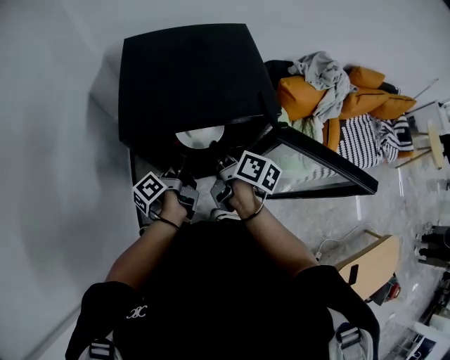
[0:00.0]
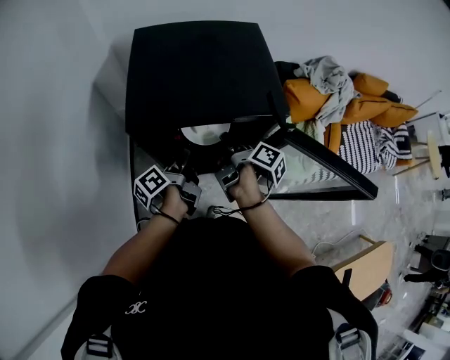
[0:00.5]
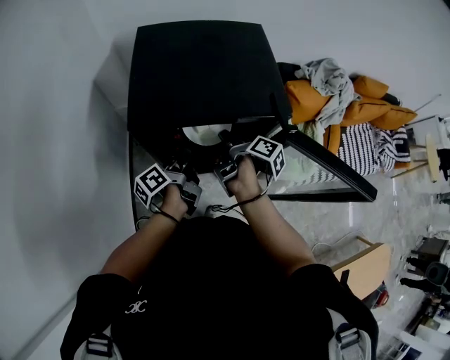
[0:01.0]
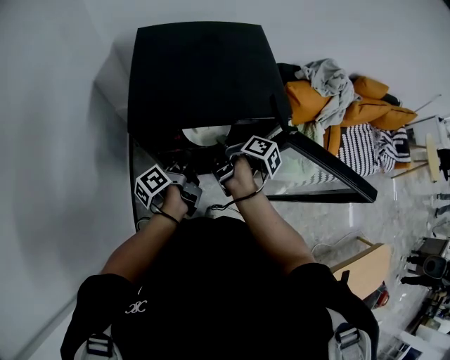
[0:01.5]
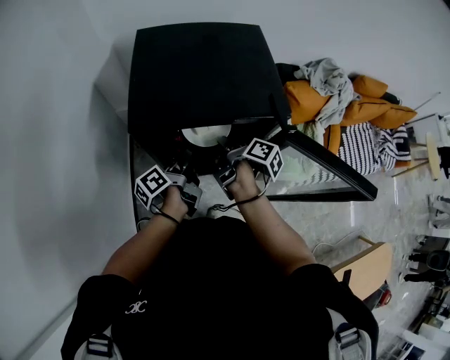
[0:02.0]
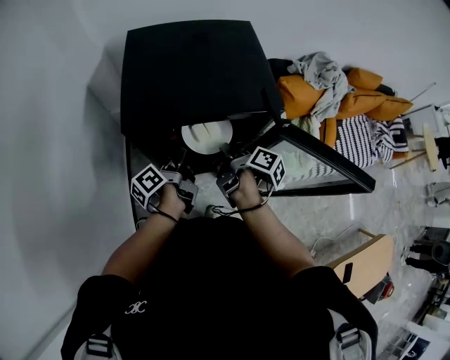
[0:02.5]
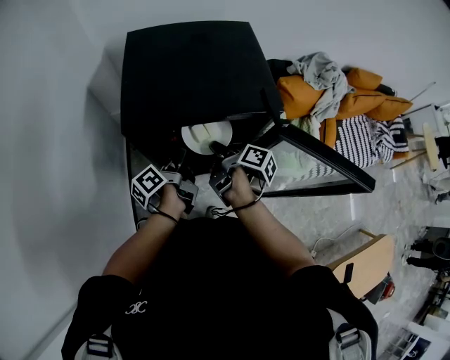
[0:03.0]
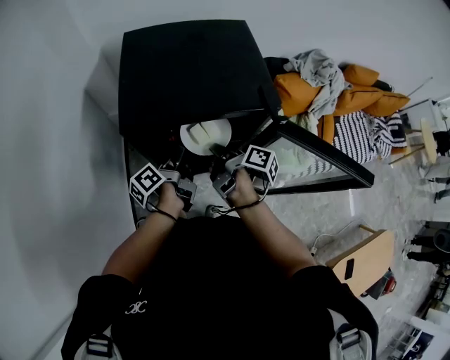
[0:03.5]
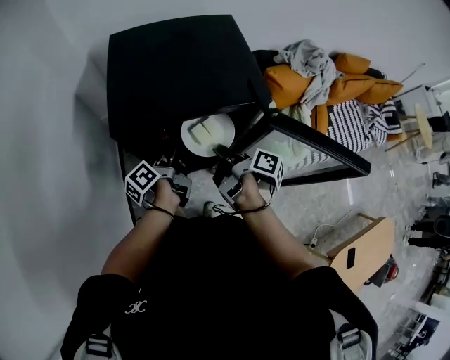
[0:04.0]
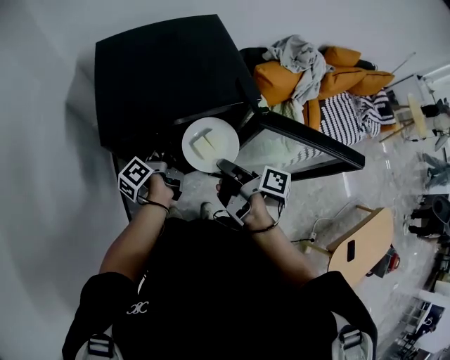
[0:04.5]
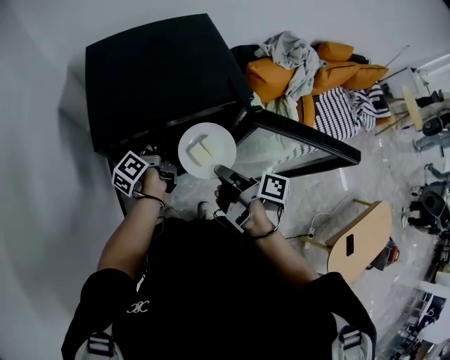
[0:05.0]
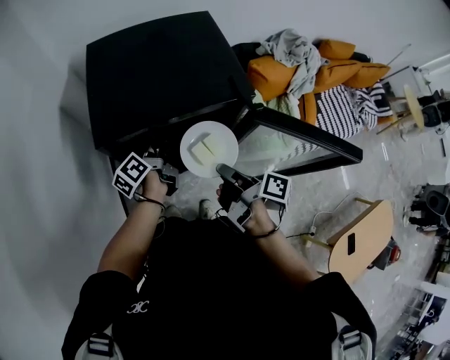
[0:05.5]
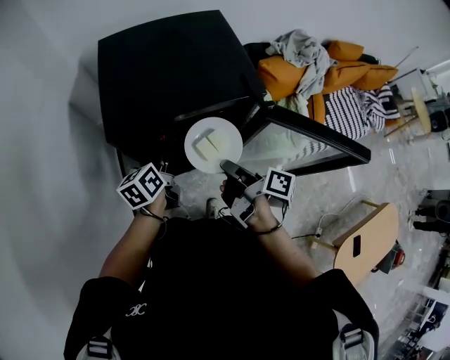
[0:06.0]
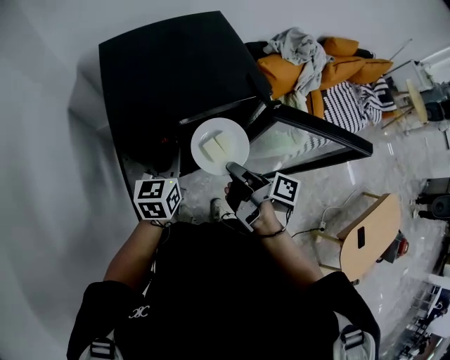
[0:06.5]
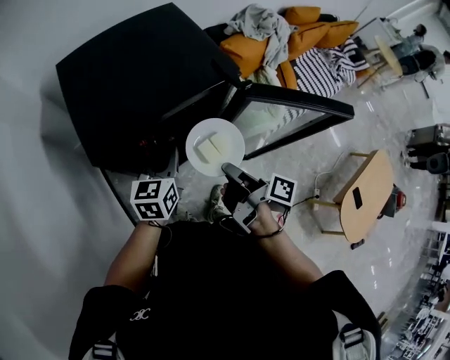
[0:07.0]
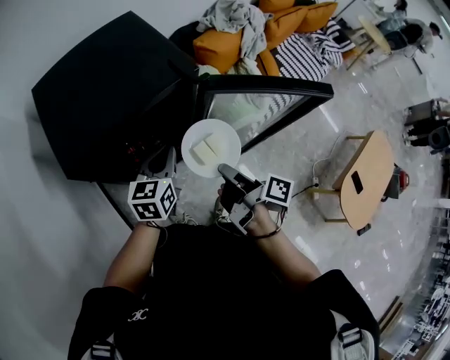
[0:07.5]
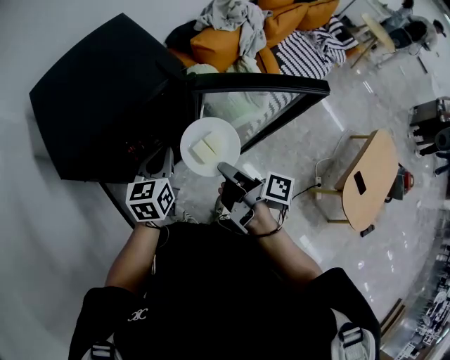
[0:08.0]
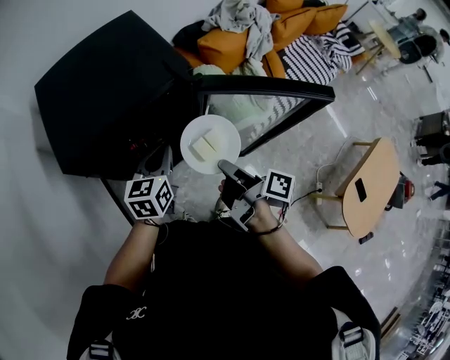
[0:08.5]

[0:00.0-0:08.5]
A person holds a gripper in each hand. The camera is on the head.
0:00.0 to 0:02.0: The right gripper changes its angle by roughly 20 degrees, and closes its fingers.
0:02.0 to 0:04.0: The right gripper shifts approximately 5 cm backward, and opens, then closes once more.
0:04.0 to 0:06.5: The right gripper shifts some 5 cm backward; the left gripper heads upward, covering about 5 cm, and twists approximately 70 degrees clockwise, seen from behind.
0:06.5 to 0:08.5: The right gripper moves to the right and backward, about 15 cm; the left gripper goes roughly 10 cm to the right.

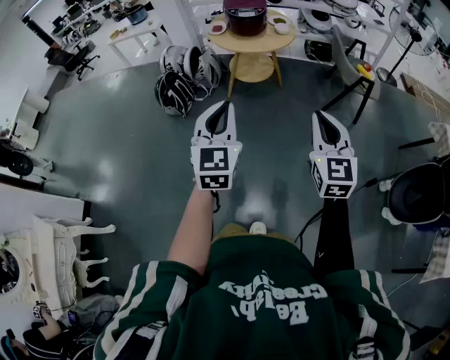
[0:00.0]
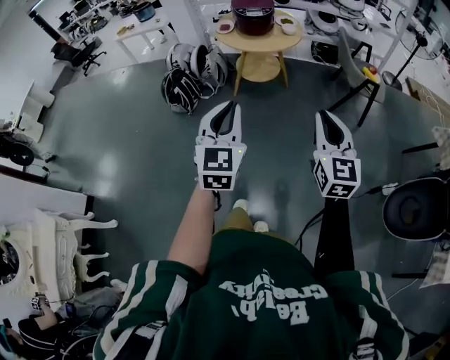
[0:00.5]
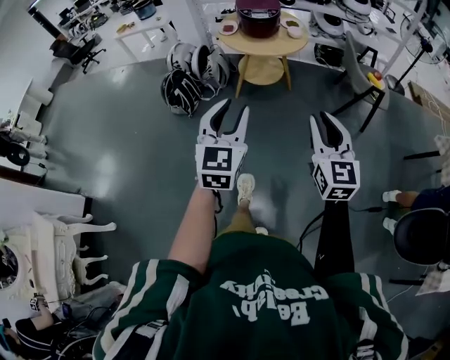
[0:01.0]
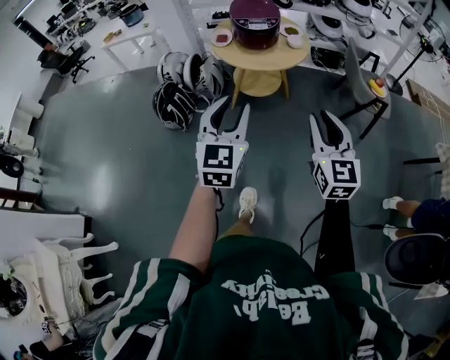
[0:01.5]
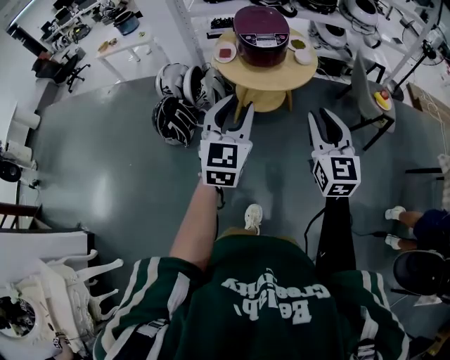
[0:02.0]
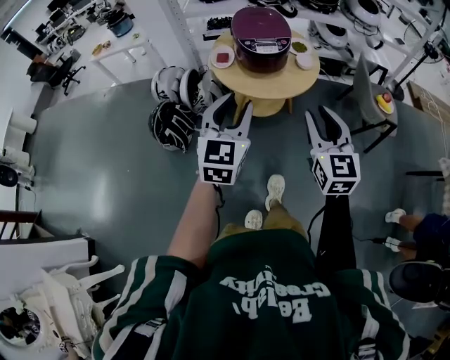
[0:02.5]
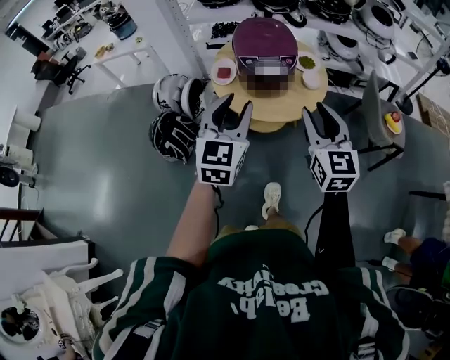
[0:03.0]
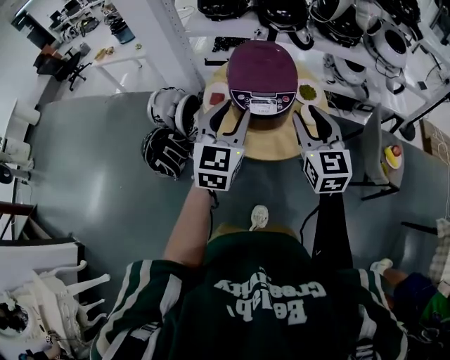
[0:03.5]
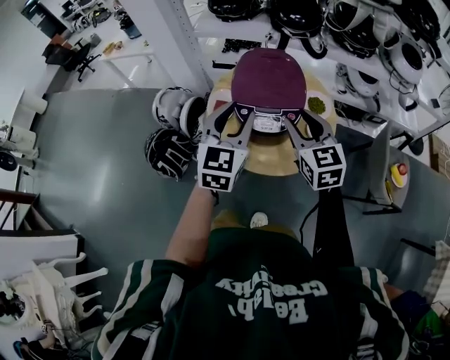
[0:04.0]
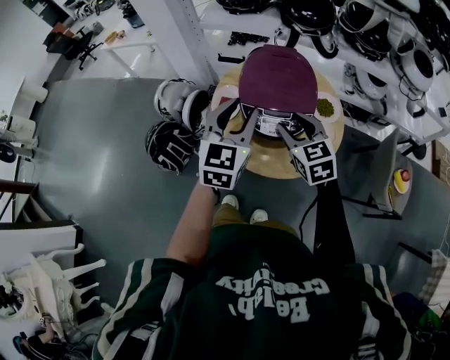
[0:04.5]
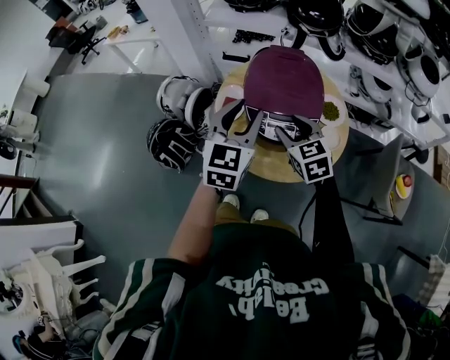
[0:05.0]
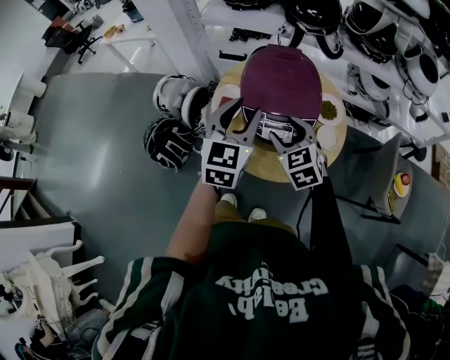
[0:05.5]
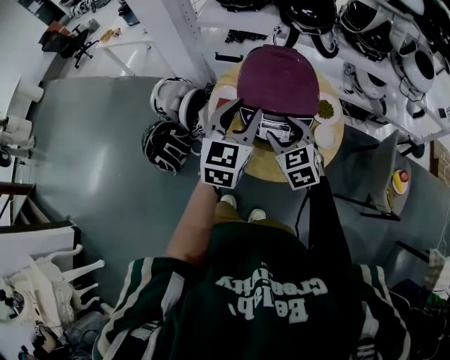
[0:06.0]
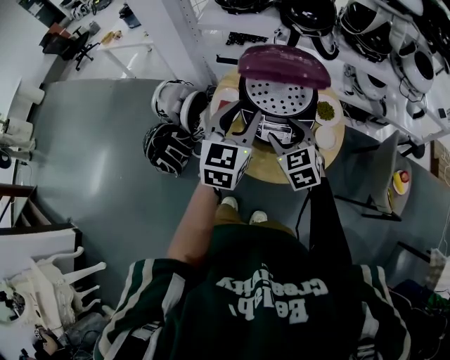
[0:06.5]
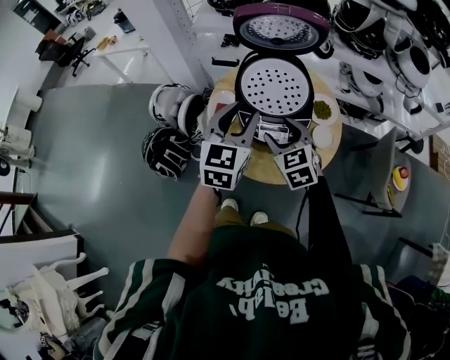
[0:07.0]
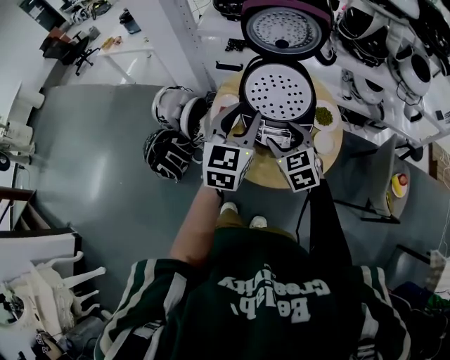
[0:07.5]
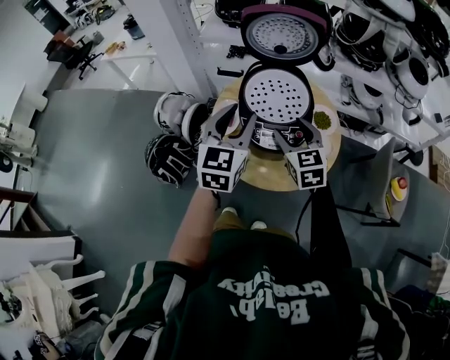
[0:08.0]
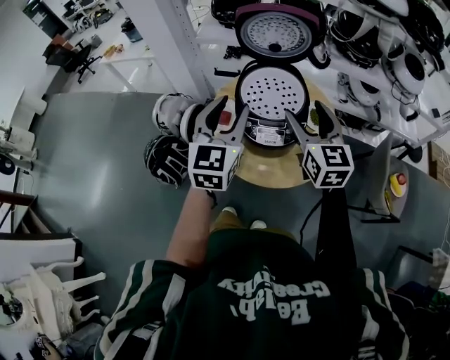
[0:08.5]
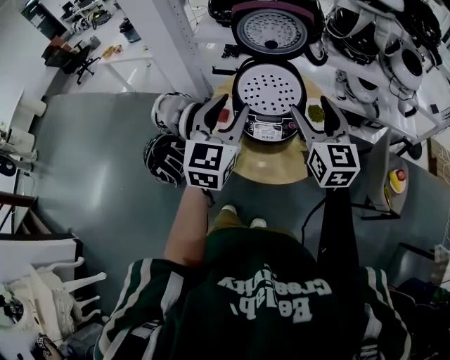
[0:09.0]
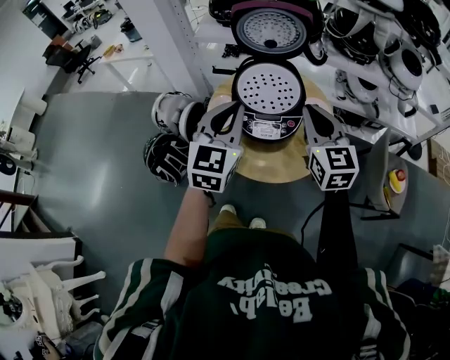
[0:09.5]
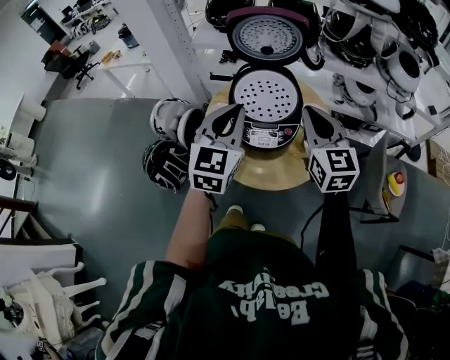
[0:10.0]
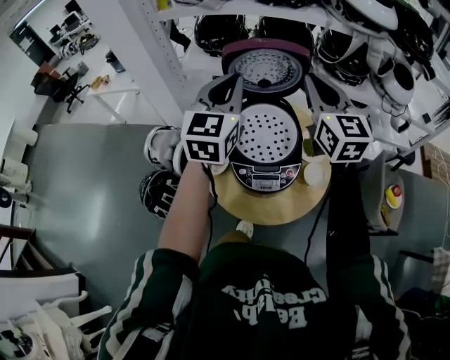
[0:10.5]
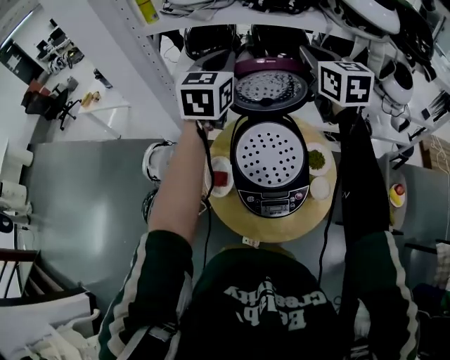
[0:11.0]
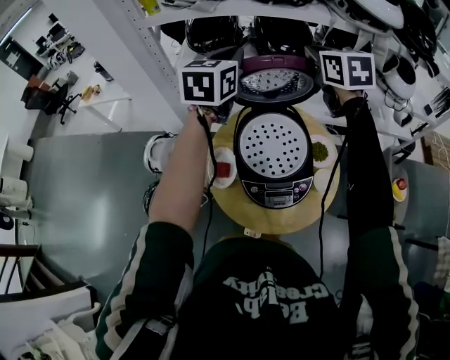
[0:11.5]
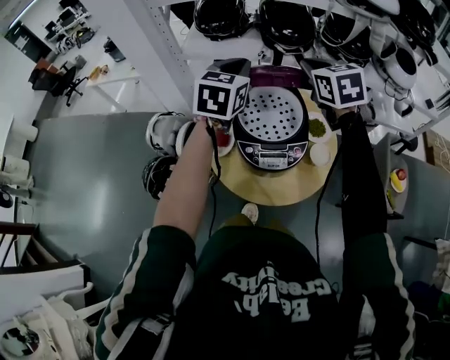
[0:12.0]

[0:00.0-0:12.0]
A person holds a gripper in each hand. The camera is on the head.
0:00.0 to 0:02.0: The two grippers go approximately 35 cm forward. The left gripper opens up.
0:02.0 to 0:04.0: Both grippers are carried forward, about 40 cm. The right gripper turns by some 20 degrees.
0:04.0 to 0:06.0: The right gripper moves downward and to the left, approximately 10 cm. Meanwhile the left gripper moves forward, roughly 5 cm.
0:06.0 to 0:08.0: The right gripper moves approximately 5 cm.
0:08.0 to 0:10.0: The left gripper closes its fingers. The right gripper travels upward and to the right by about 15 cm, and closes its fingers.
0:10.0 to 0:12.0: The grippers both shift forward by some 20 cm. The right gripper turns by roughly 20 degrees.

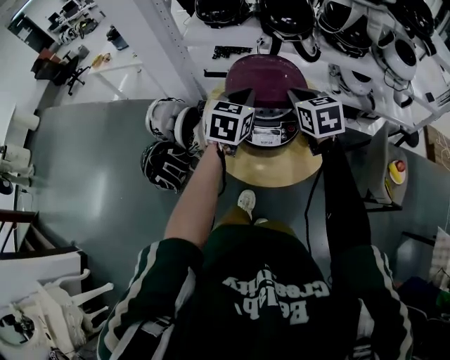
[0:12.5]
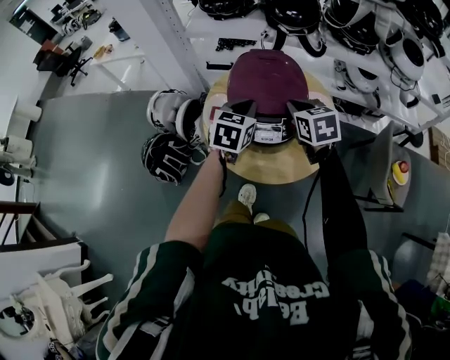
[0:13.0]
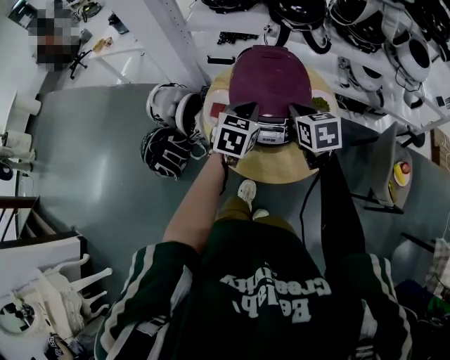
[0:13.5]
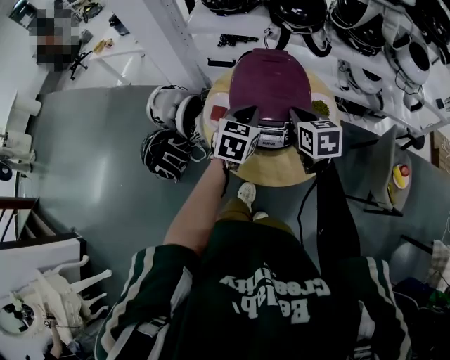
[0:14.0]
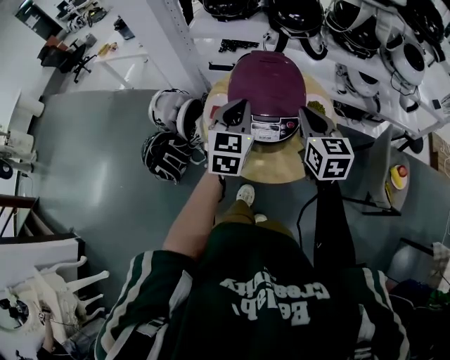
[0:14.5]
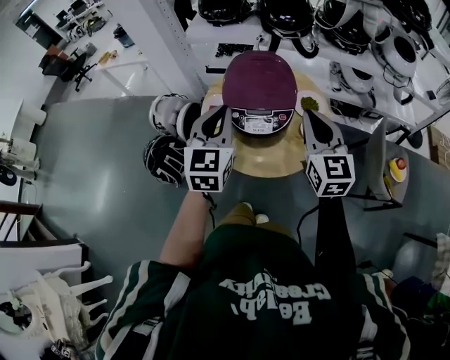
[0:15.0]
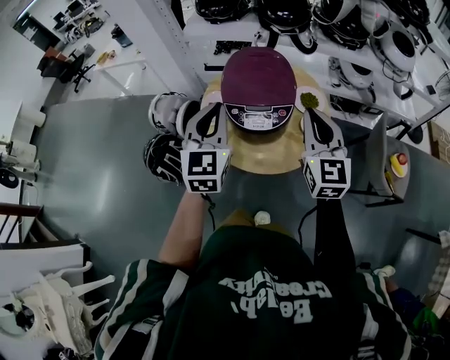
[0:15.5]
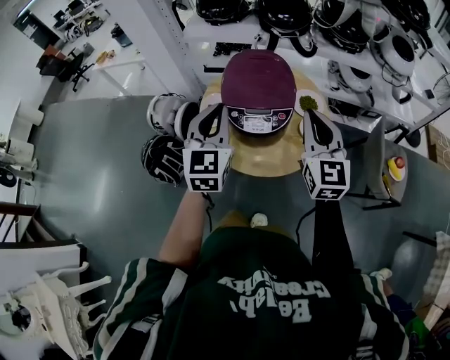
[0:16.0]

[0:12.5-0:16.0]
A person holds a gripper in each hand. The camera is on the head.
0:12.5 to 0:14.5: Both grippers travel together backward, some 5 cm. The right gripper goes downward and returns, about 10 cm each way. Meanwhile the left gripper travels downward and back again, some 10 cm each way.
0:14.5 to 0:16.0: The two grippers go roughly 10 cm backward and upward. The right gripper rotates roughly 20 degrees.

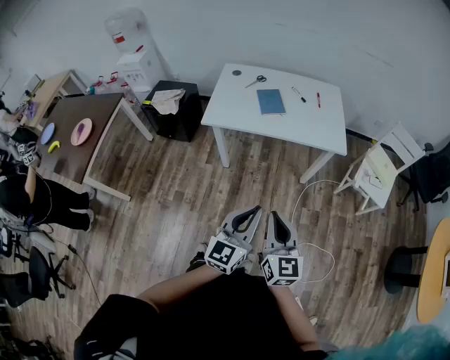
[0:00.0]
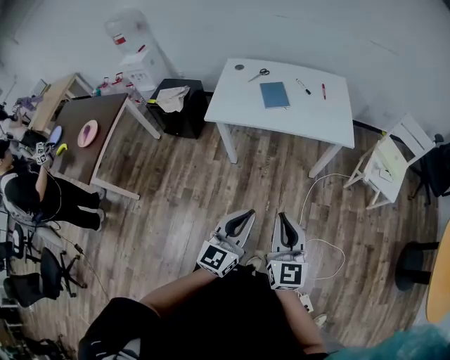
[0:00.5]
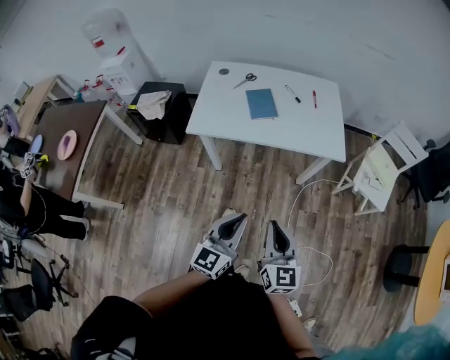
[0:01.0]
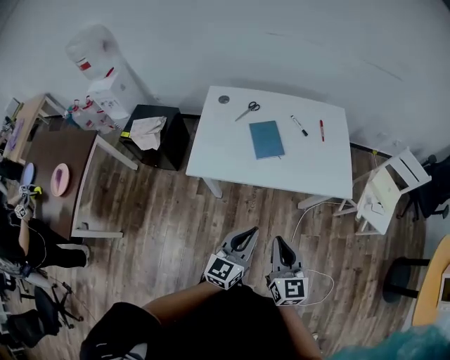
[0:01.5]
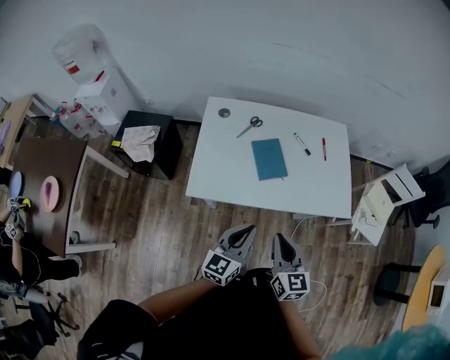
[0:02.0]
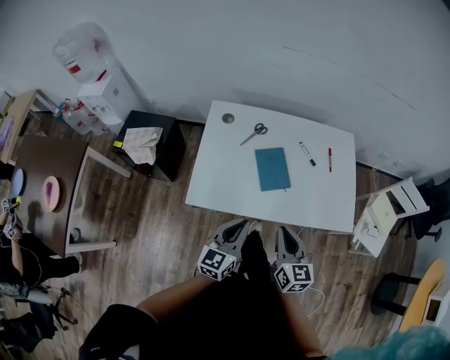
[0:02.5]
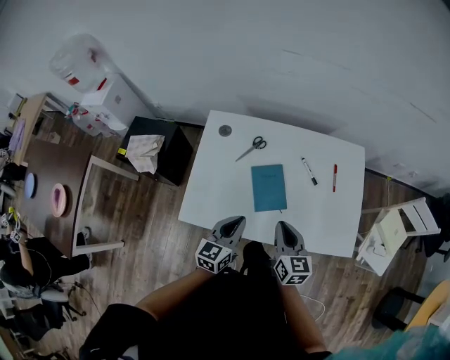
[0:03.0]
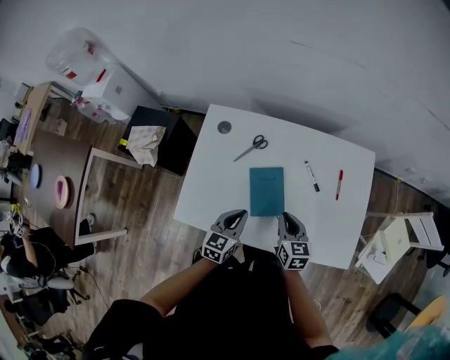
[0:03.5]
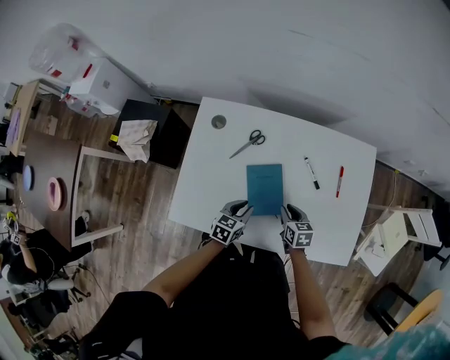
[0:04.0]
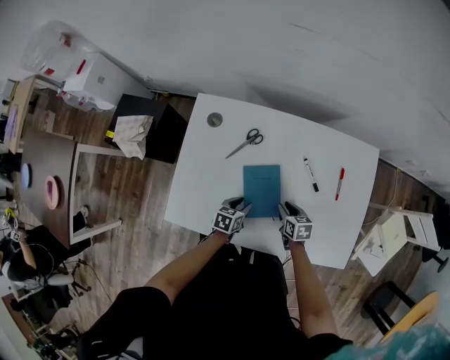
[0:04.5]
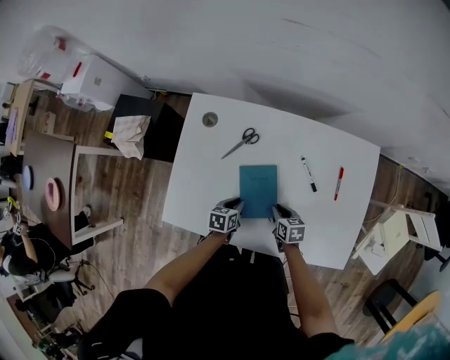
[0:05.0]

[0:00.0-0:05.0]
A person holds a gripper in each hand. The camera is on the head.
0:00.0 to 0:02.5: Both grippers are carried forward, about 50 cm.
0:02.5 to 0:05.0: The grippers both shift downward and forward by about 40 cm. The left gripper tilts its fingers approximately 40 degrees downward. Meanwhile the right gripper angles its fingers downward, by approximately 30 degrees.
